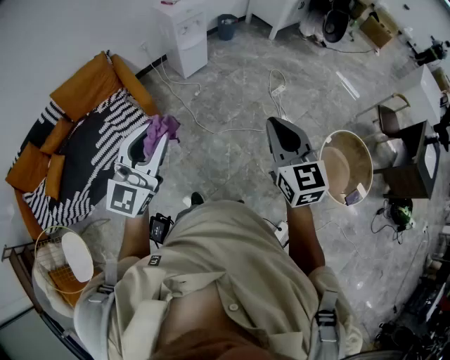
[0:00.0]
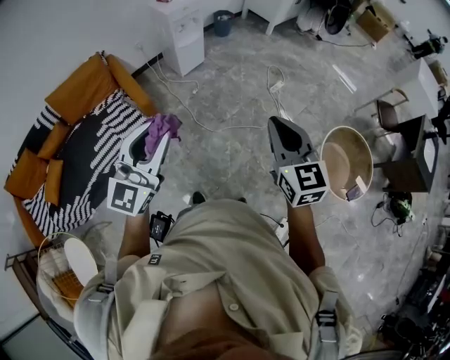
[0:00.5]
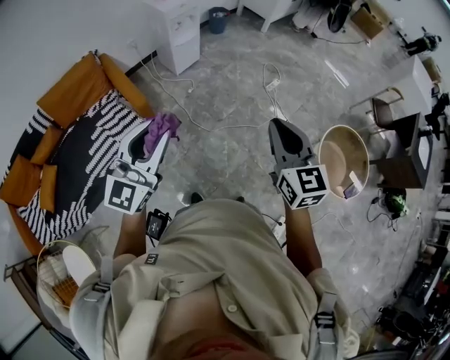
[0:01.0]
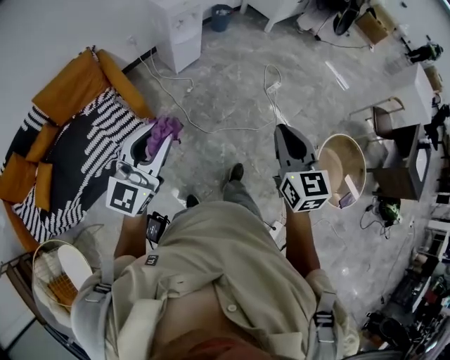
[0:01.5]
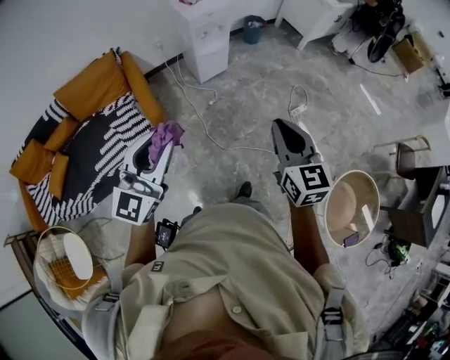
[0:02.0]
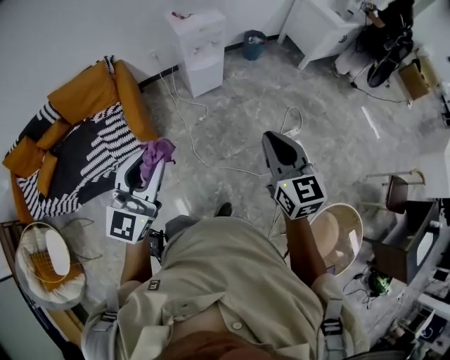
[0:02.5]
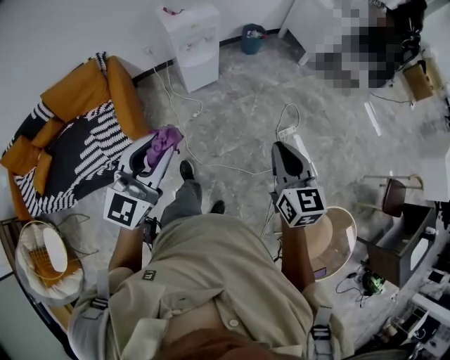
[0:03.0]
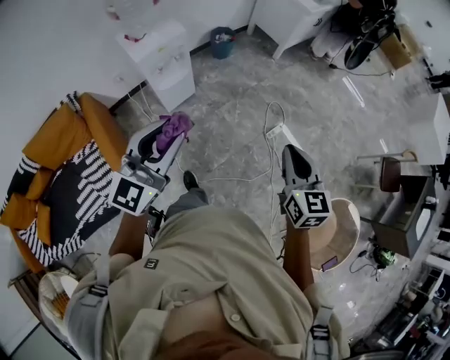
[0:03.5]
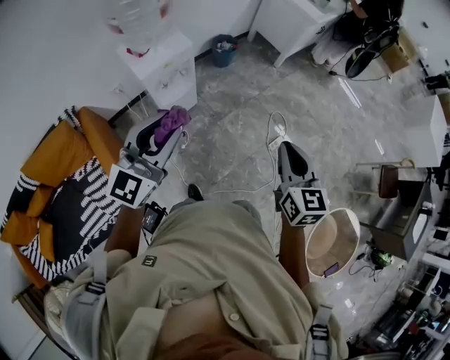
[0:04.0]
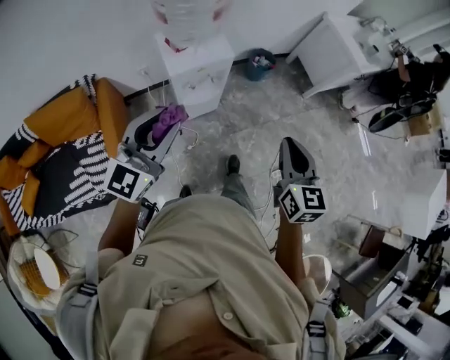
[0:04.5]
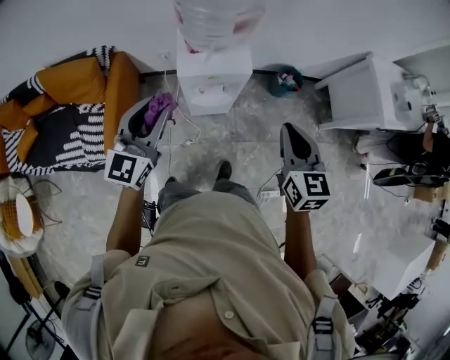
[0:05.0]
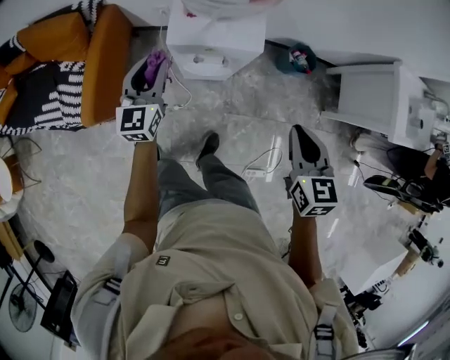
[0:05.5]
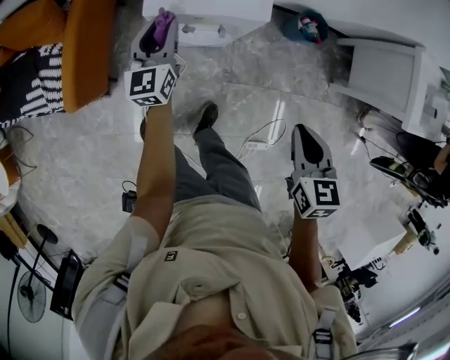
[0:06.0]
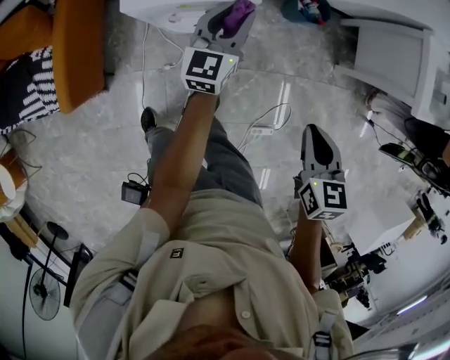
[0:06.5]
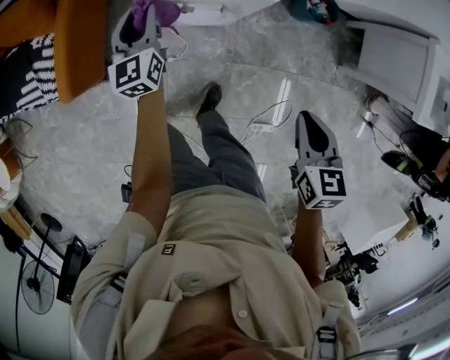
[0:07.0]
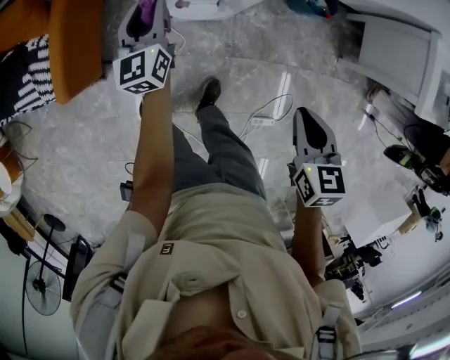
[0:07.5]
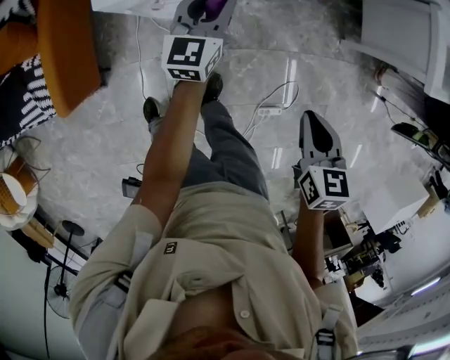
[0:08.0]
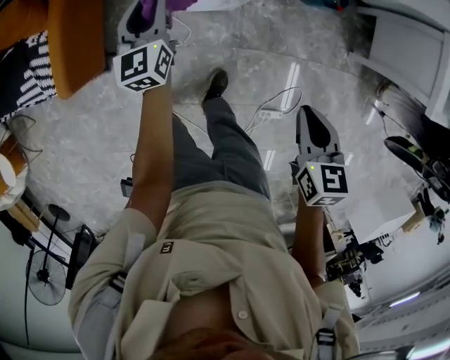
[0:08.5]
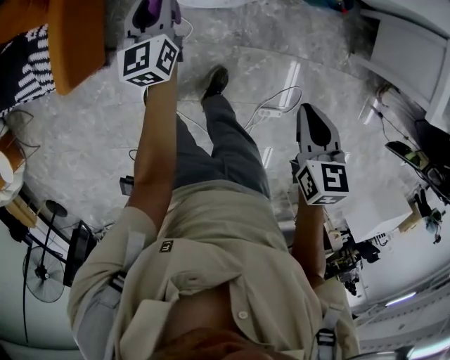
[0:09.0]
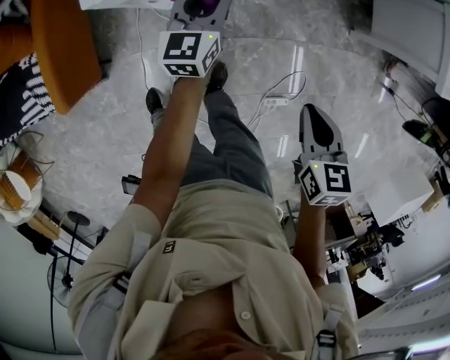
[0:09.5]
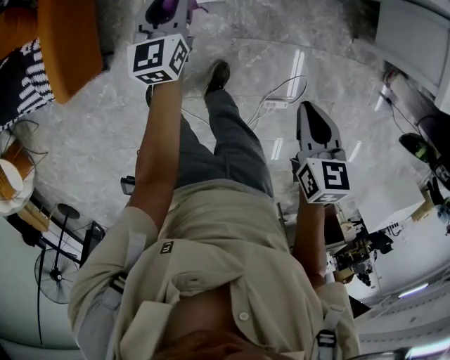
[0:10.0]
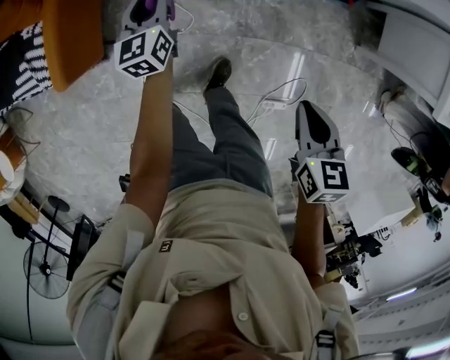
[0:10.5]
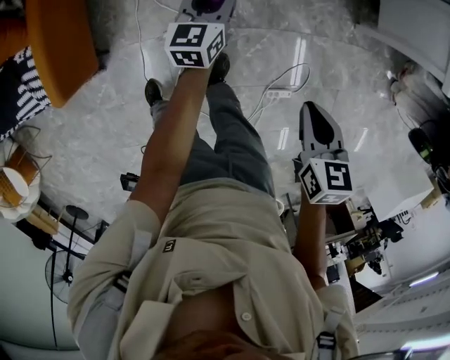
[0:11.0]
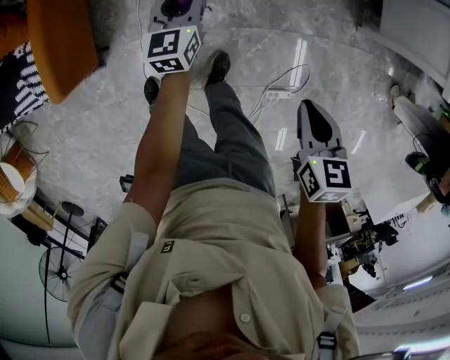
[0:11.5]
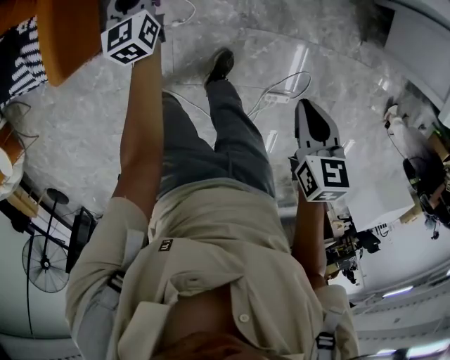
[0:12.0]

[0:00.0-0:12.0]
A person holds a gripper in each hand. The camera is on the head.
0:00.0 to 0:02.0: Both grippers travel together forward, about 25 cm.
0:02.0 to 0:04.0: Both grippers are carried forward, some 50 cm.
0:04.0 to 0:06.0: Both grippers are carried approximately 40 cm. The left gripper swivels roughly 70 degrees; the right gripper rotates about 50 degrees.
0:06.0 to 0:08.0: The right gripper shifts approximately 10 cm downward and to the right. The left gripper goes left and right, some 25 cm each way, reversing 2 times, and swivels some 20 degrees.
0:08.0 to 0:10.0: The left gripper swings left and right, about 20 cm each way, with 2 reversals; the right gripper shifts by approximately 5 cm.
0:10.0 to 0:12.0: The left gripper moves left and right over roughly 25 cm, changing direction 2 times; the right gripper moves left and right over about 5 cm, changing direction 2 times.

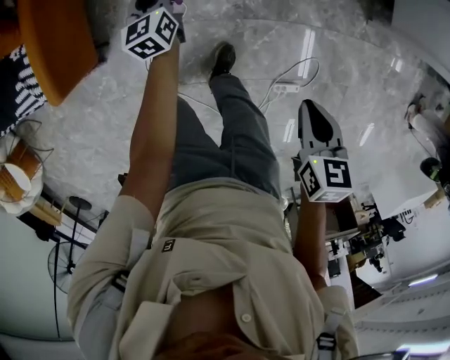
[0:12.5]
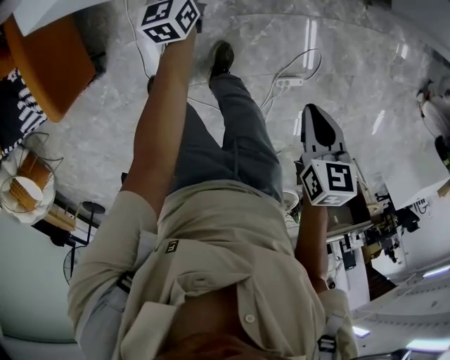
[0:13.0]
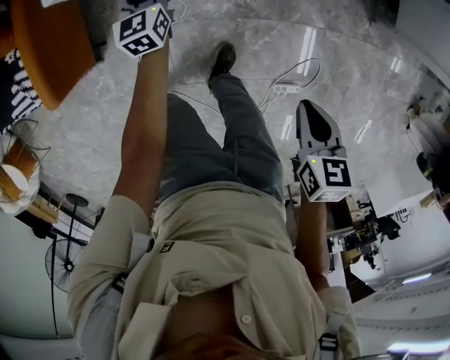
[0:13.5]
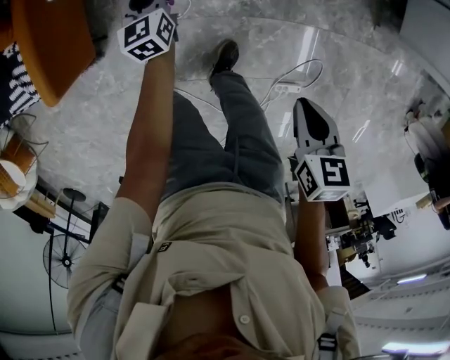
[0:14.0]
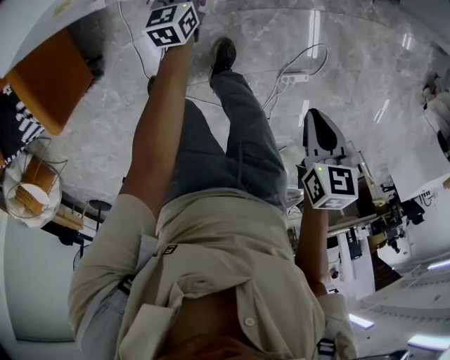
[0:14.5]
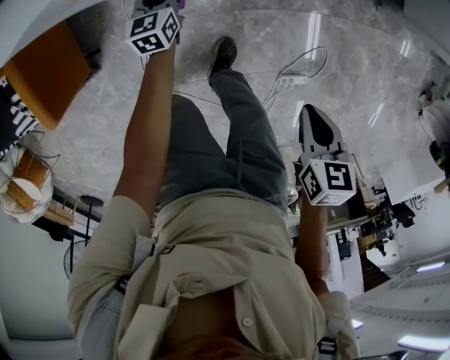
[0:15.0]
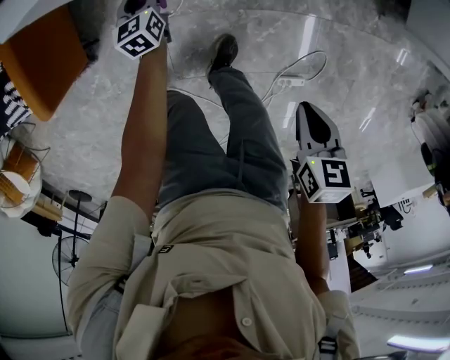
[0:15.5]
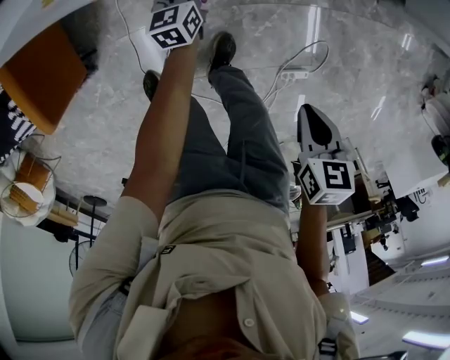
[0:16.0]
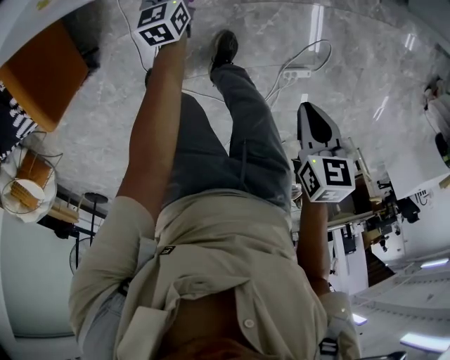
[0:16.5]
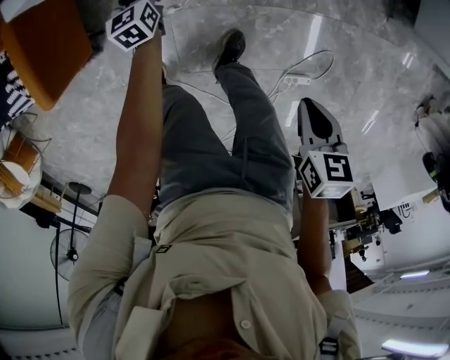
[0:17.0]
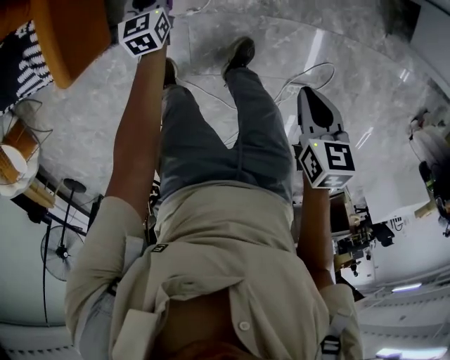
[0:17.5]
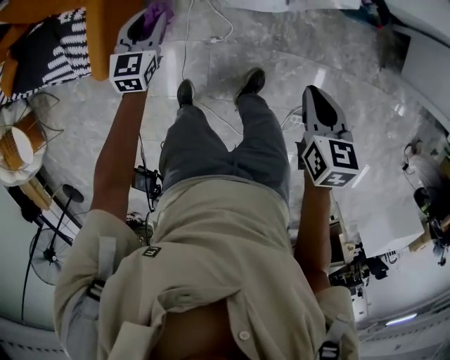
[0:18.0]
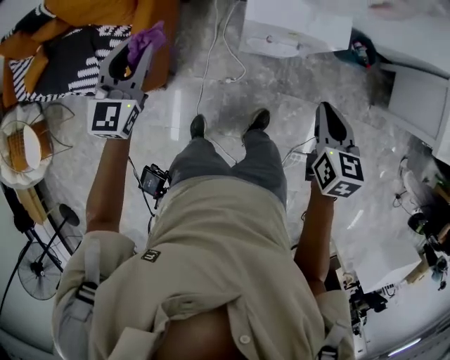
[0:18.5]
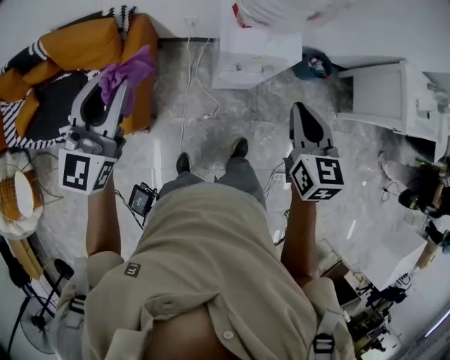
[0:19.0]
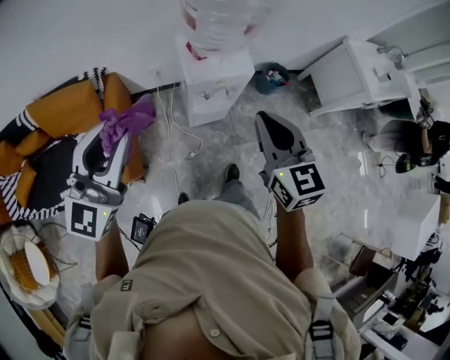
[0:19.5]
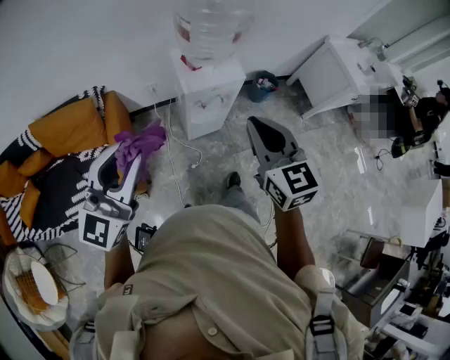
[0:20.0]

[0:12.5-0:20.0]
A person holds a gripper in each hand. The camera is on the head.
0:12.5 to 0:14.5: The left gripper goes left and right, roughly 20 cm each way, reversing 2 times, and rotates about 20 degrees. The right gripper goes left and right, approximately 10 cm each way, reversing 2 times.
0:14.5 to 0:16.5: The left gripper reaches roughly 20 cm to the left, then returns. The right gripper ends up some 5 cm from where it was.
0:16.5 to 0:18.0: The left gripper is displaced to the left and upward by roughly 40 cm, and swivels roughly 20 degrees; the right gripper moves upward, to the left and forward, roughly 30 cm, and swivels about 20 degrees.
0:18.0 to 0:20.0: The two grippers go approximately 50 cm upward. The left gripper angles its fingers upward, by approximately 40 degrees; the right gripper points its fingers roughly 40 degrees further upward.

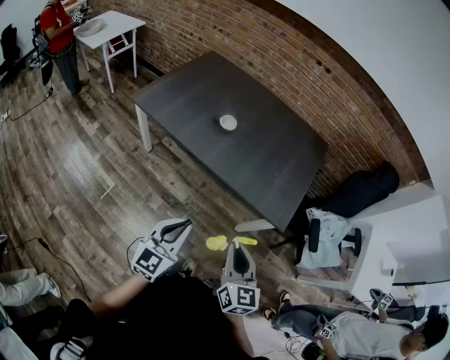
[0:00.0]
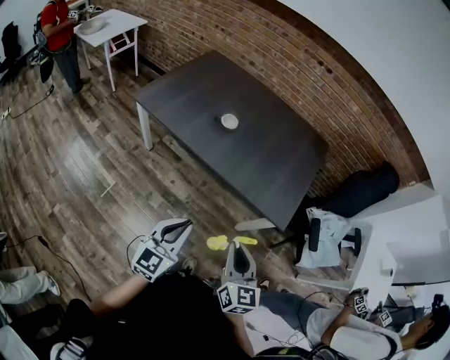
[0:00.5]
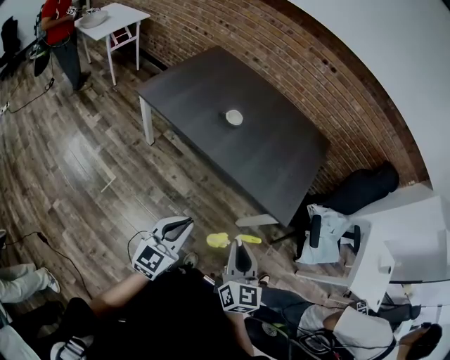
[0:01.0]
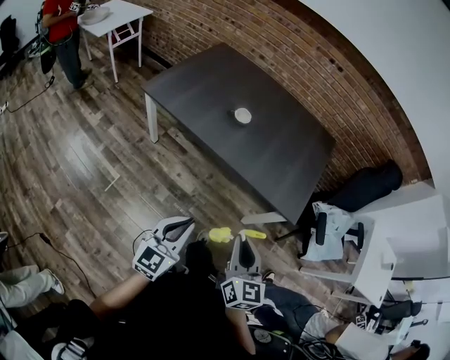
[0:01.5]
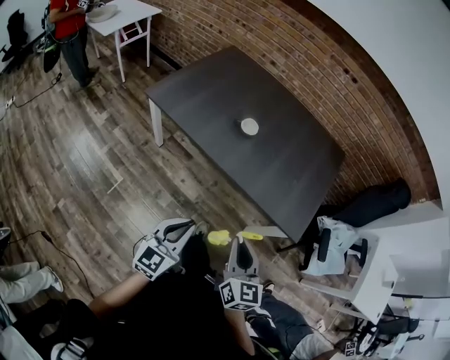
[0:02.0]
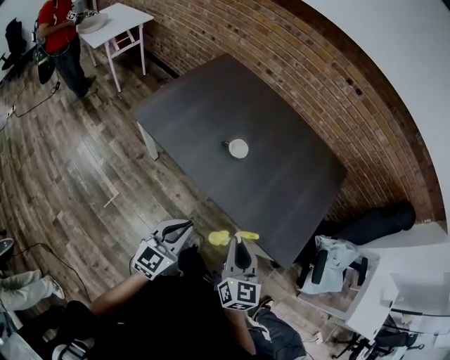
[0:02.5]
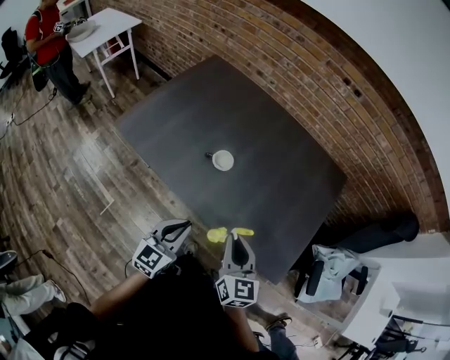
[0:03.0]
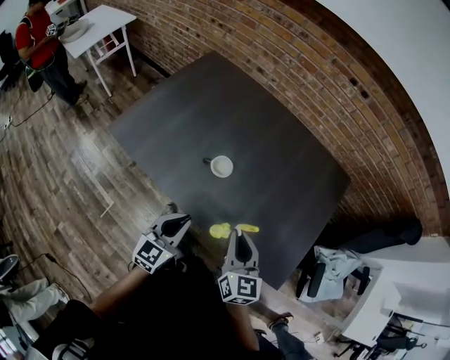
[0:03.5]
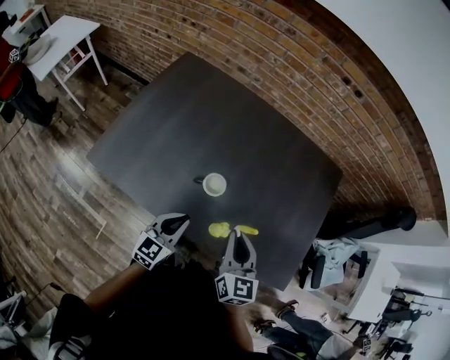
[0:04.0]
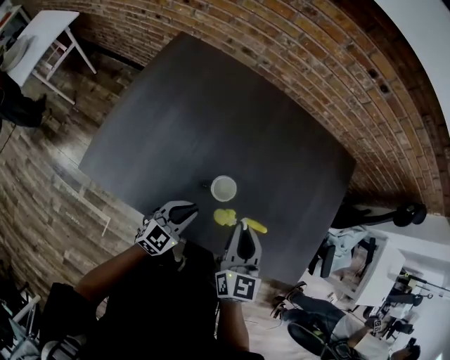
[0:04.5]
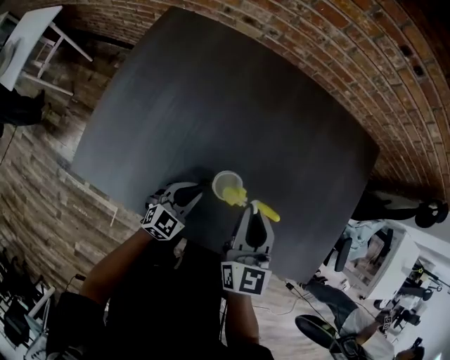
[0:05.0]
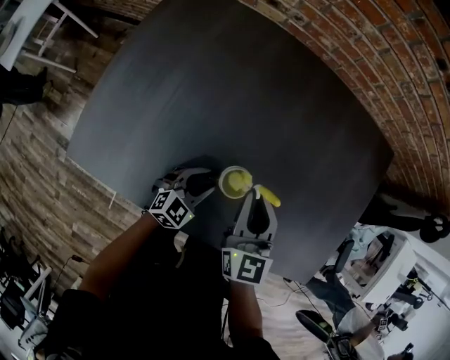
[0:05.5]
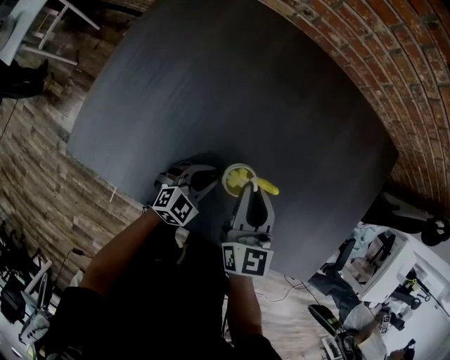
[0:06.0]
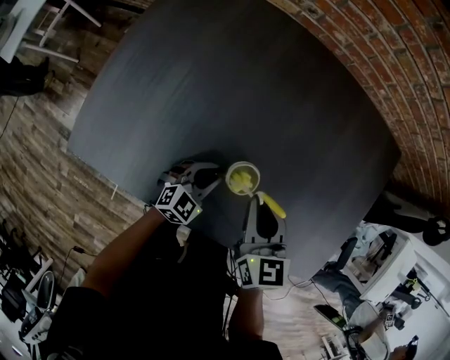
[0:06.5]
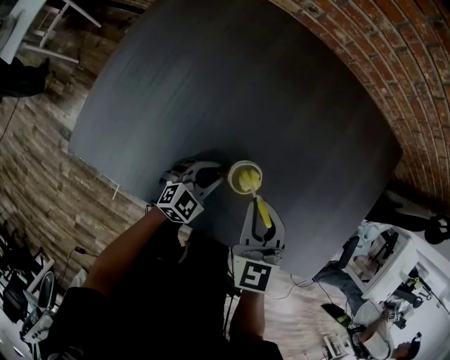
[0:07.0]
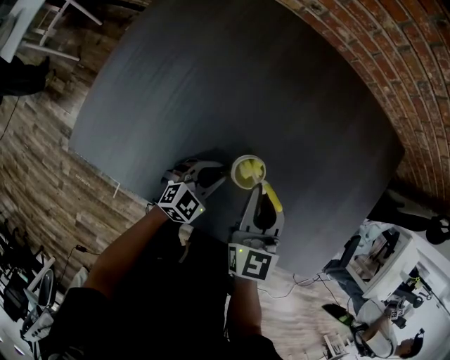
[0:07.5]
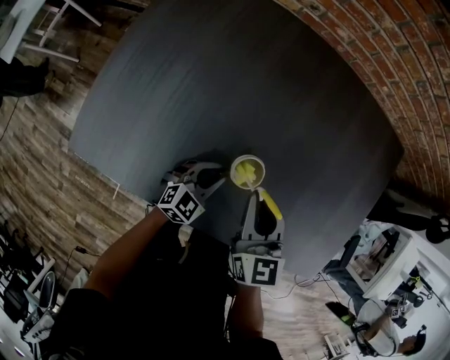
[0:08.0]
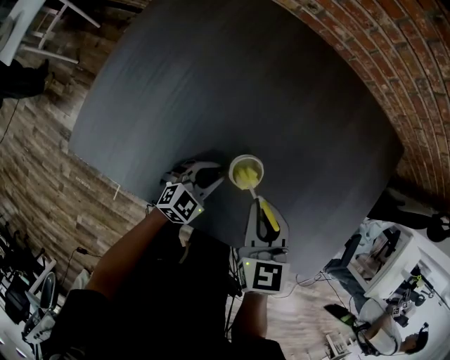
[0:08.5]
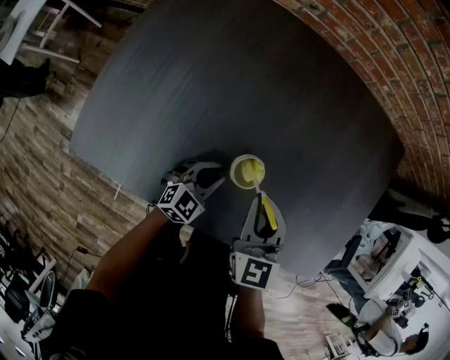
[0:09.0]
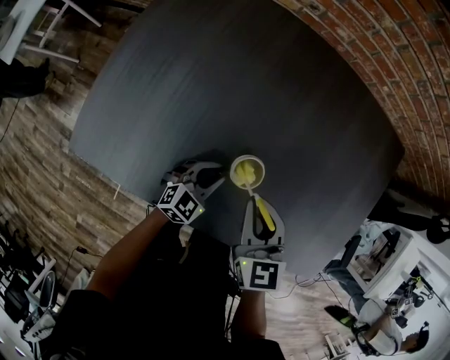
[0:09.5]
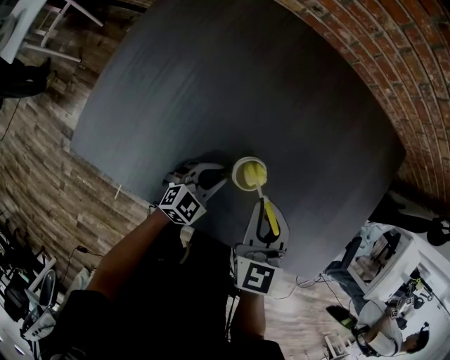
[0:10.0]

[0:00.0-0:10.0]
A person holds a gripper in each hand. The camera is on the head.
0:00.0 to 0:02.0: The right gripper moves to the left and forward, approximately 10 cm. Meanwhile the left gripper shifts approximately 10 cm to the left.
0:02.0 to 0:04.0: The two grippers travel together, forward, about 40 cm.
0:04.0 to 0:06.0: The left gripper heads downward and forward, covering roughly 25 cm, and swivels about 30 degrees. The right gripper is displaced forward, downward and to the left by approximately 25 cm.
0:08.0 to 0:10.0: The grippers move only a little.
